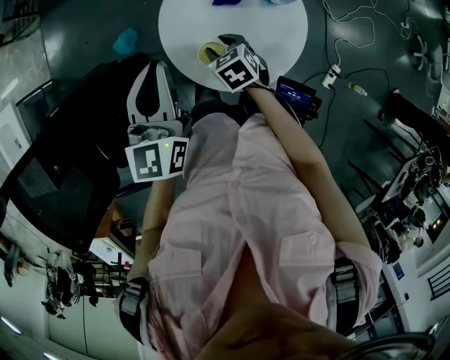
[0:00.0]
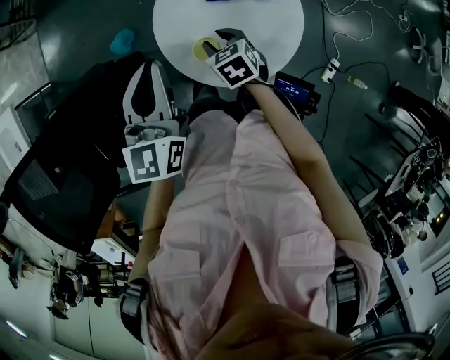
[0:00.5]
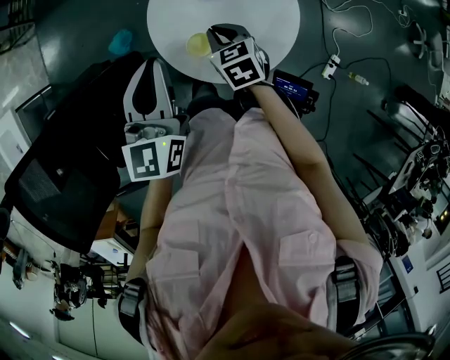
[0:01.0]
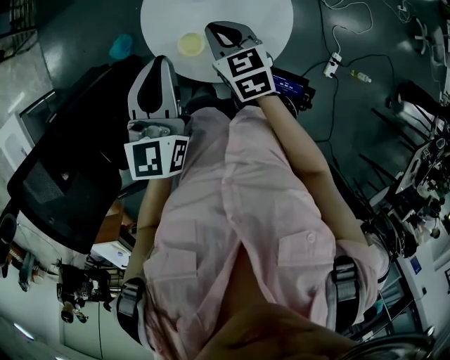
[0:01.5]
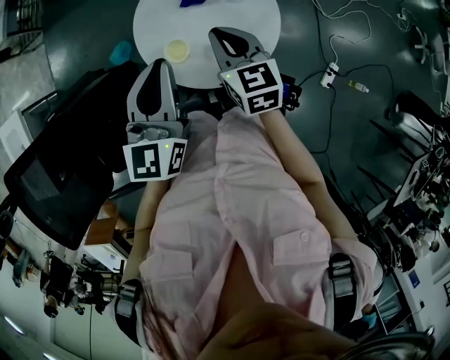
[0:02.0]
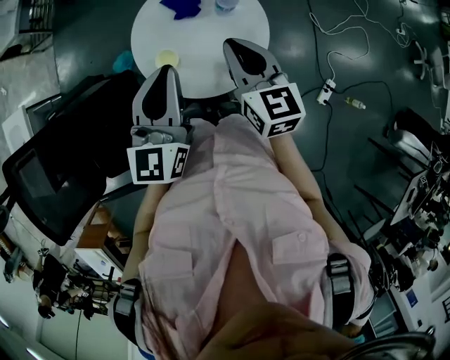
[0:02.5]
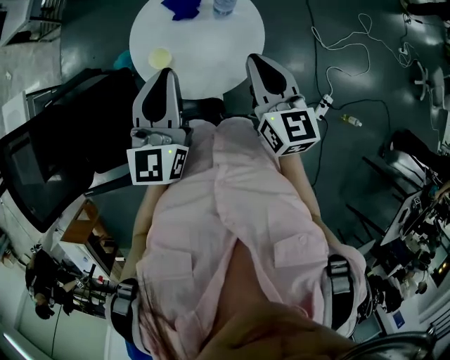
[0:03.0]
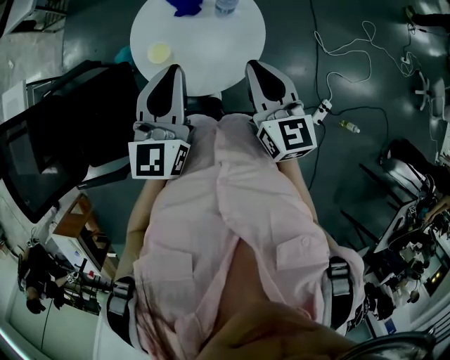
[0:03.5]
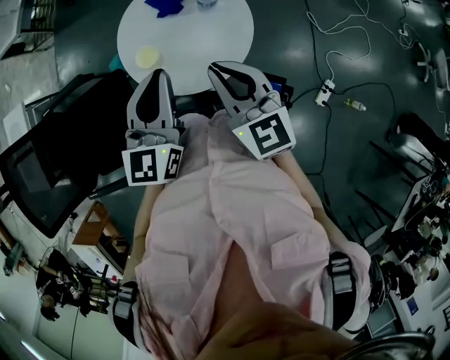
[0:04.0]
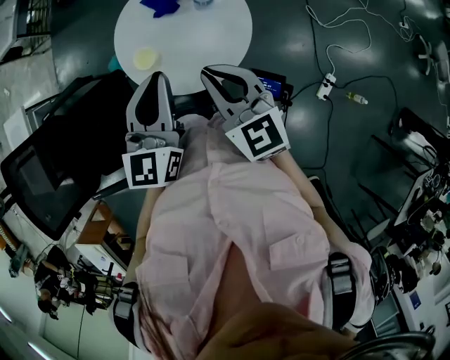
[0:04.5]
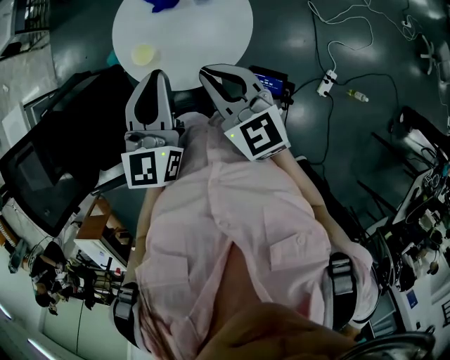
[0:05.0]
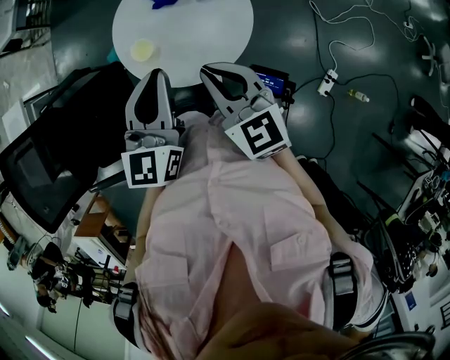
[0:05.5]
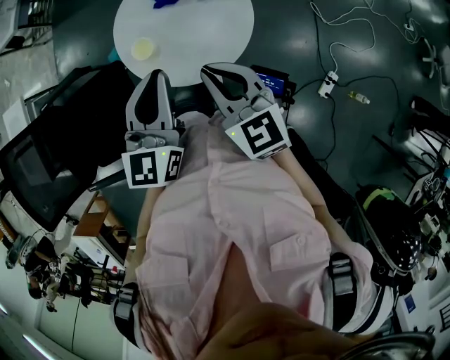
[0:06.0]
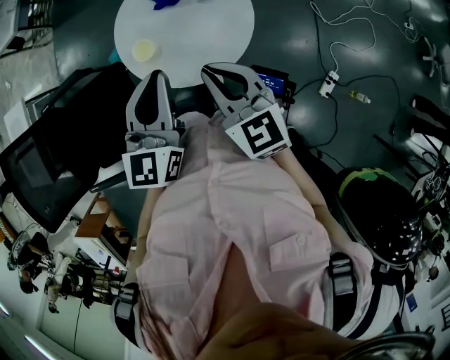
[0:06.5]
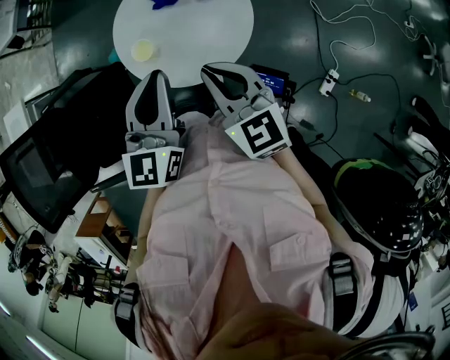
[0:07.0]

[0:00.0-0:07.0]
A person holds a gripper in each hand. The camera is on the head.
0:00.0 to 0:02.0: The right gripper travels upward and to the right by roughly 20 cm, points its fingers approximately 30 degrees further upward, and closes its fingers. Meanwhile the left gripper travels to the right and backward by about 10 cm.
0:02.0 to 0:03.5: The right gripper shifts some 20 cm to the right, backward and upward, while the left gripper moves to the right and backward, roughly 10 cm.
0:03.5 to 0:05.0: The right gripper is displaced to the left by about 5 cm.
0:05.0 to 0:07.0: There are only small adjustments of the grippers.

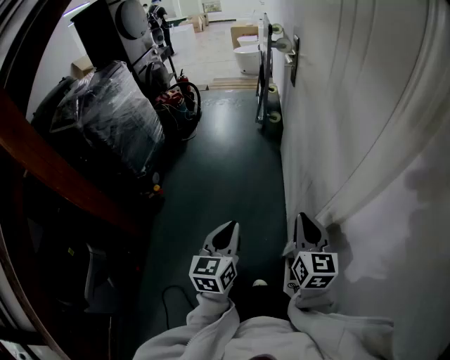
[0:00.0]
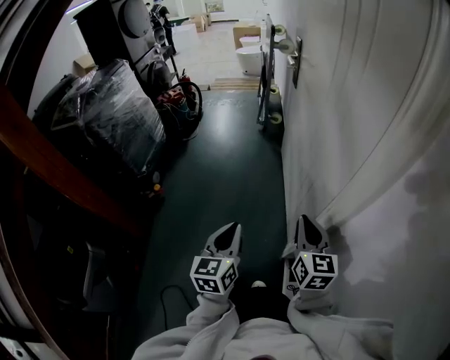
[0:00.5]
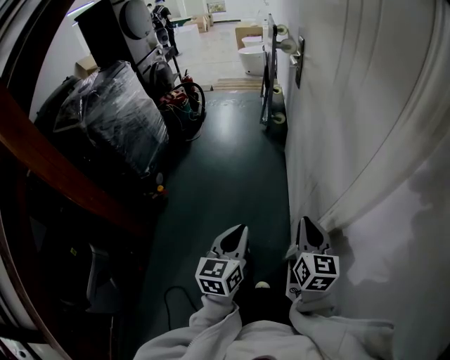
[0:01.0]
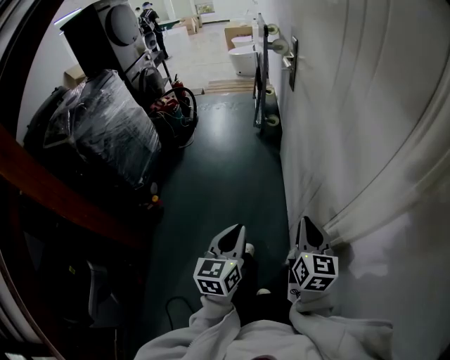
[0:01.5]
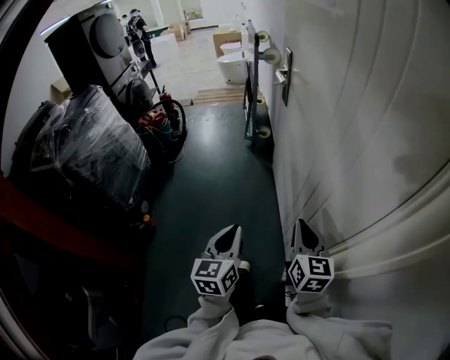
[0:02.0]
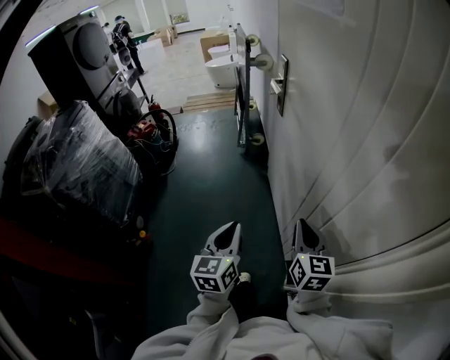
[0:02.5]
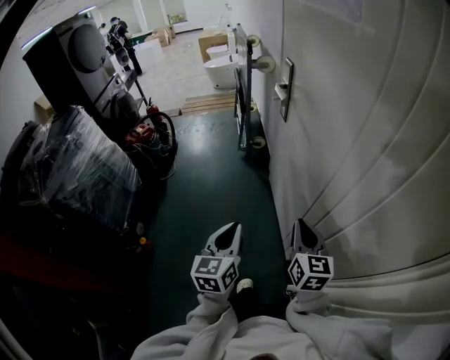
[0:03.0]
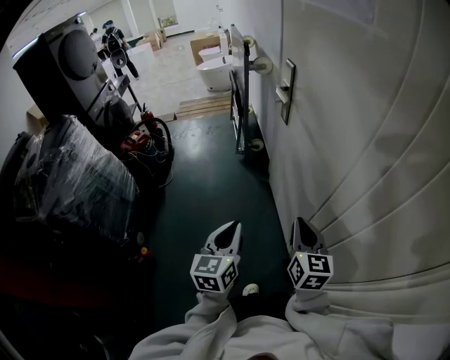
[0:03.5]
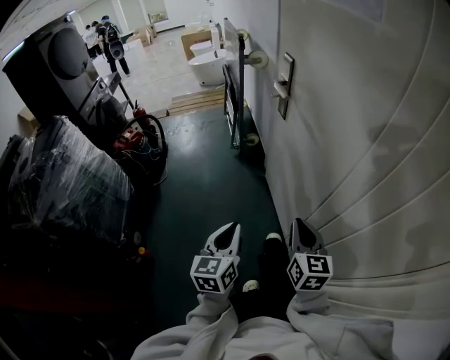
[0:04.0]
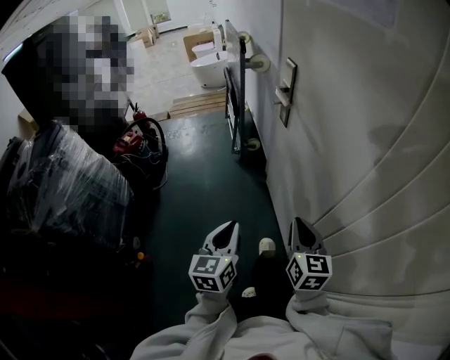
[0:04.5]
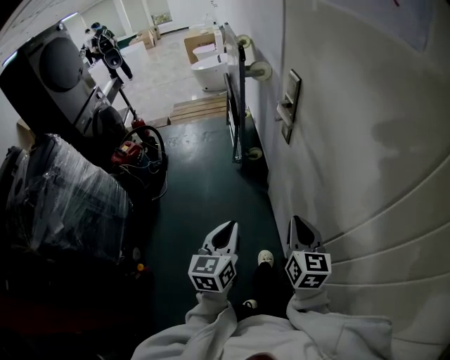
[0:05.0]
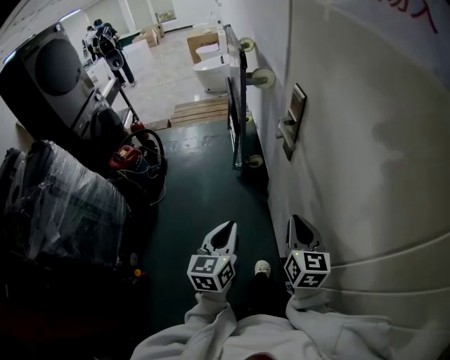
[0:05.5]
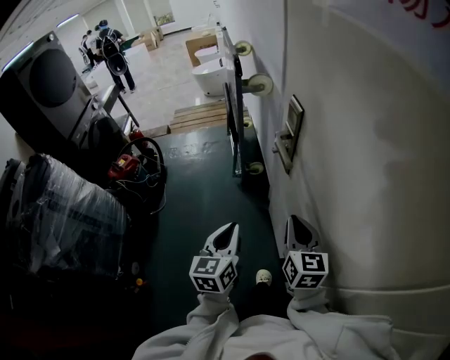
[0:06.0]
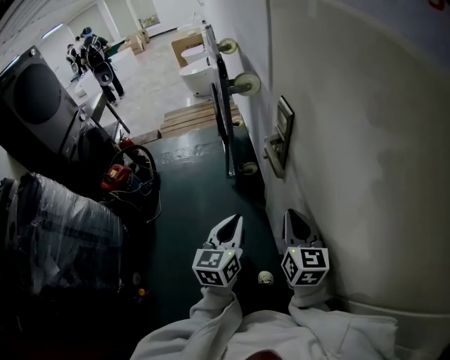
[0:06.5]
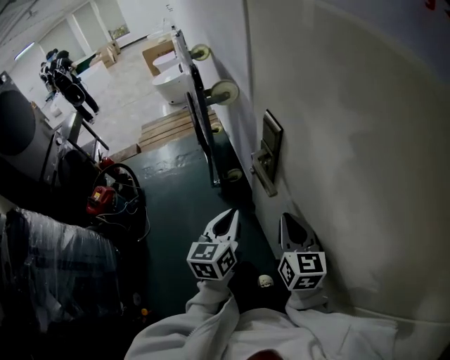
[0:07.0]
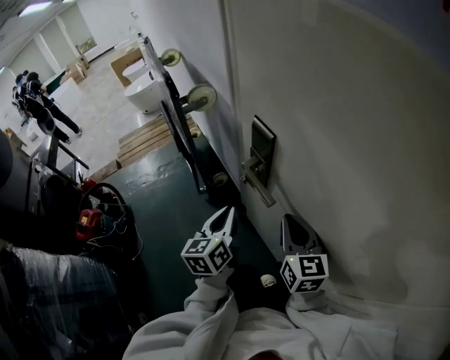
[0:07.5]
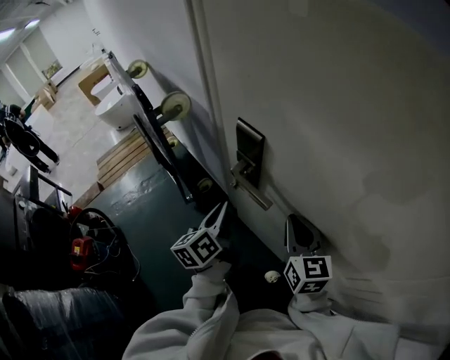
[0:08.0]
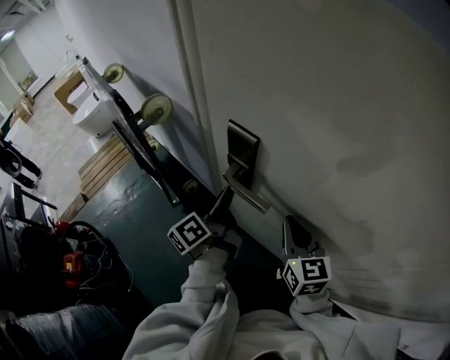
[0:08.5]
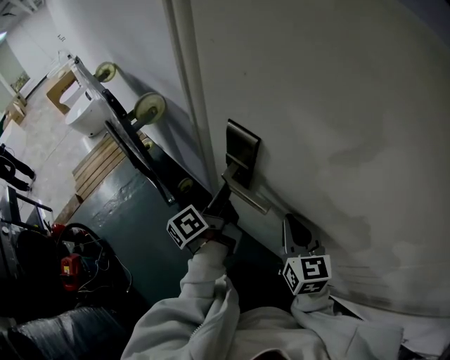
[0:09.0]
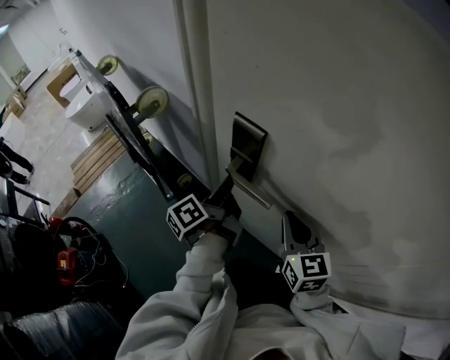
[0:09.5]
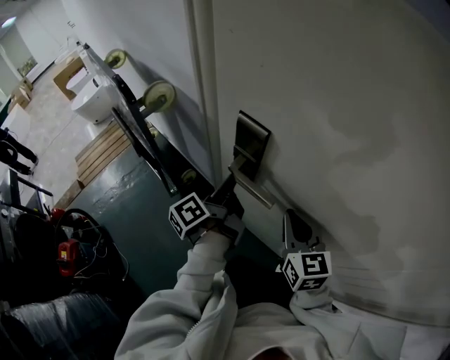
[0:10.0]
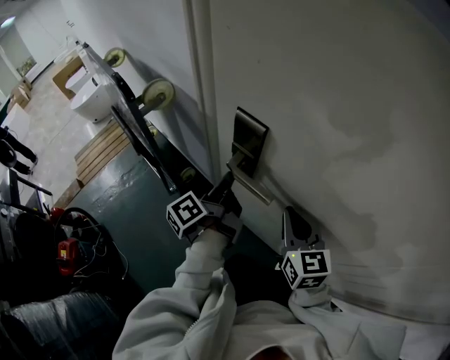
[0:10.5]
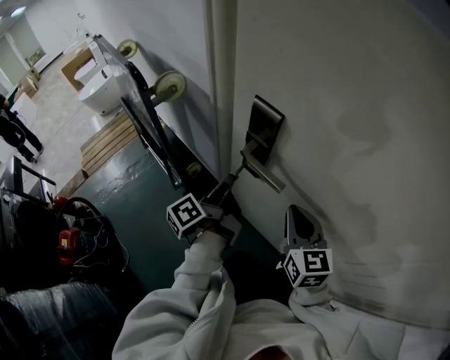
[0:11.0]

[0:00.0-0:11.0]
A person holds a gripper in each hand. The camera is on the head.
0:00.0 to 0:02.0: The two grippers go roughly 15 cm forward.
0:02.0 to 0:03.5: The grippers both shift forward and to the left by approximately 20 cm.
0:03.5 to 0:05.5: Both grippers travel together forward, some 25 cm.
0:05.5 to 0:07.5: The left gripper is displaced forward by some 25 cm, and rotates about 20 degrees; the right gripper shifts some 15 cm forward.
0:07.5 to 0:09.0: The left gripper goes some 10 cm forward, and rotates around the line of its fingers by about 40 degrees, counterclockwise from behind.
0:09.0 to 0:11.0: The left gripper ends up some 5 cm from where it was.

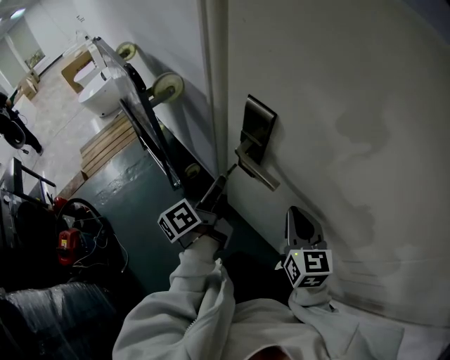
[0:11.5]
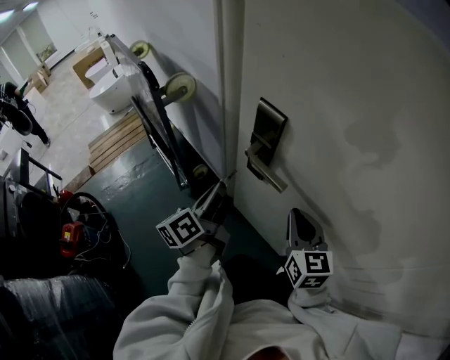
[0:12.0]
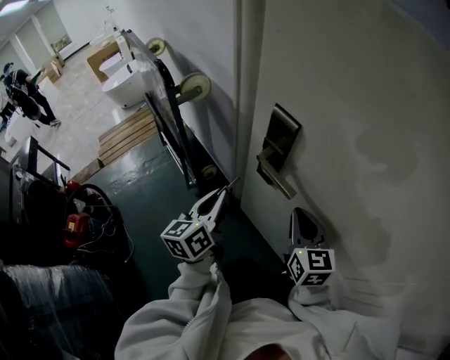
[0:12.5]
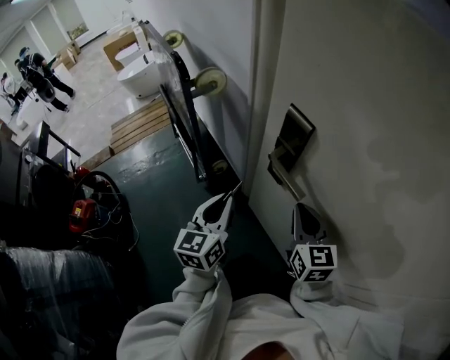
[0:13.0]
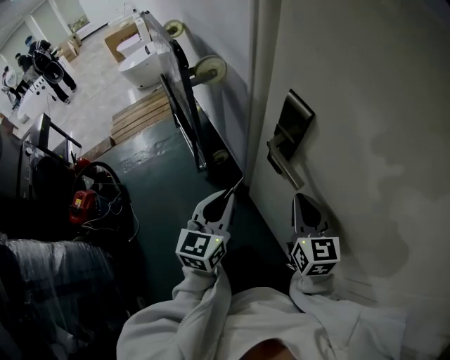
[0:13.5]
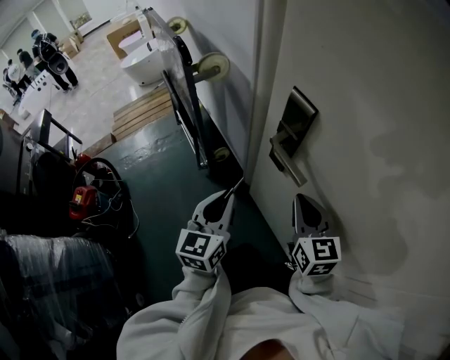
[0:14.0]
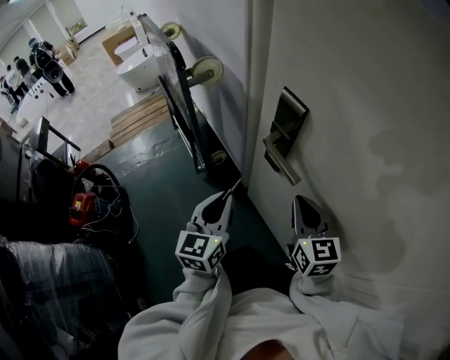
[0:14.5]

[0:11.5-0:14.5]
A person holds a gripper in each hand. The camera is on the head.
0:11.5 to 0:13.0: The right gripper shifts by about 5 cm. Meanwhile the left gripper shifts about 5 cm backward, and rolls clockwise, seen from behind, by roughly 50 degrees.
0:13.0 to 0:14.5: The grippers stay close to where they were, moving slightly.

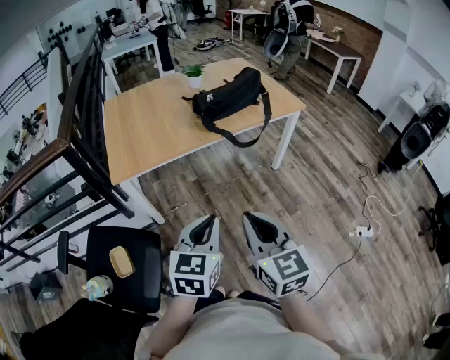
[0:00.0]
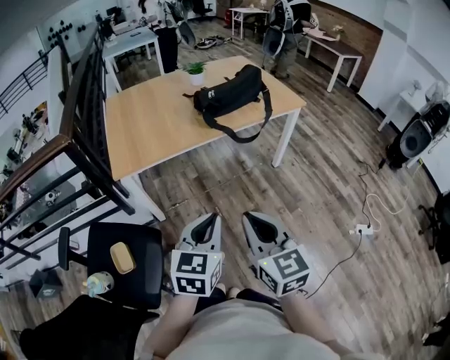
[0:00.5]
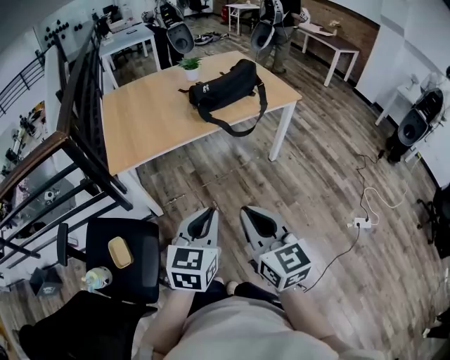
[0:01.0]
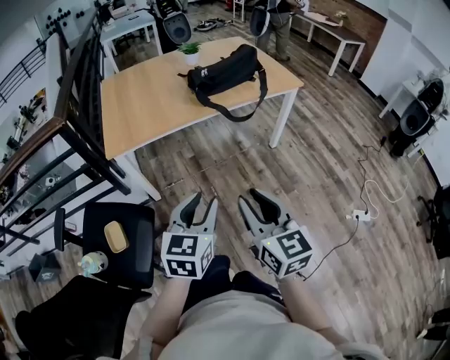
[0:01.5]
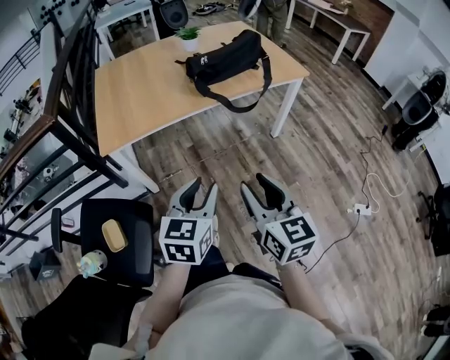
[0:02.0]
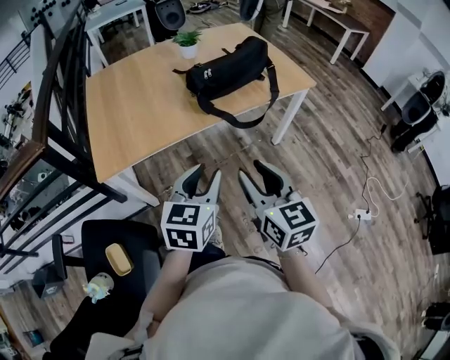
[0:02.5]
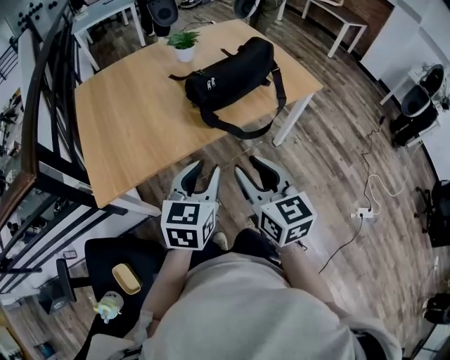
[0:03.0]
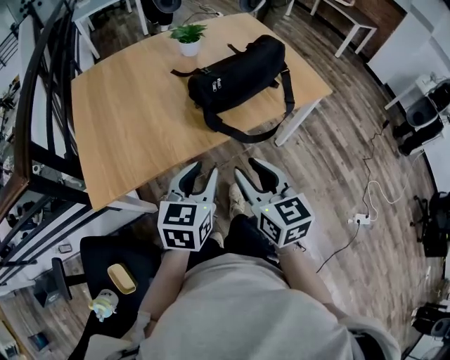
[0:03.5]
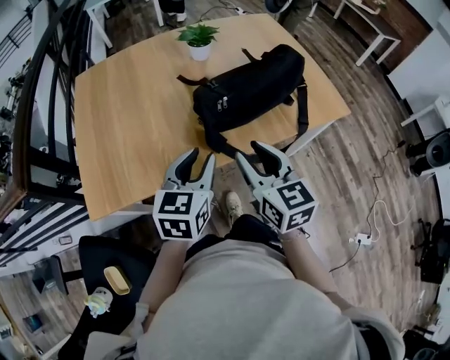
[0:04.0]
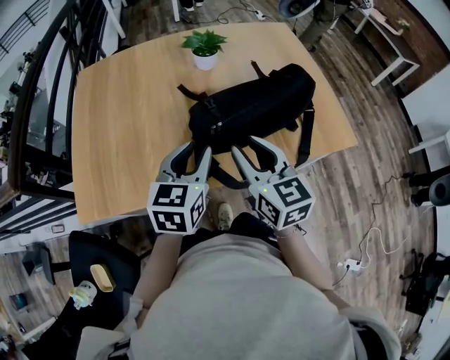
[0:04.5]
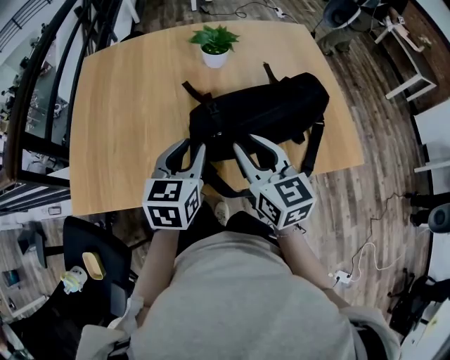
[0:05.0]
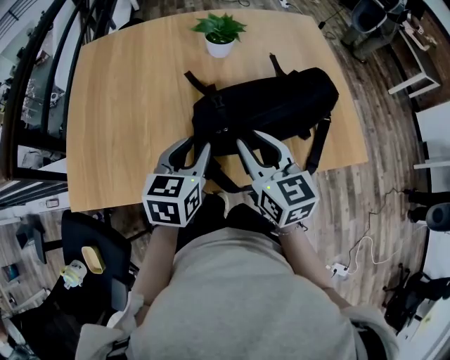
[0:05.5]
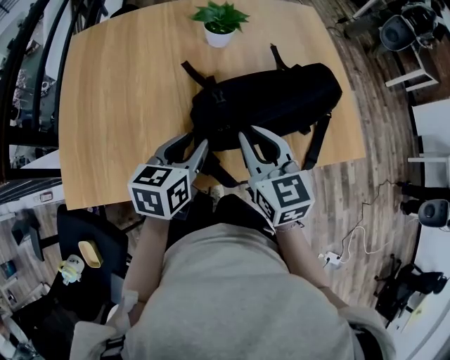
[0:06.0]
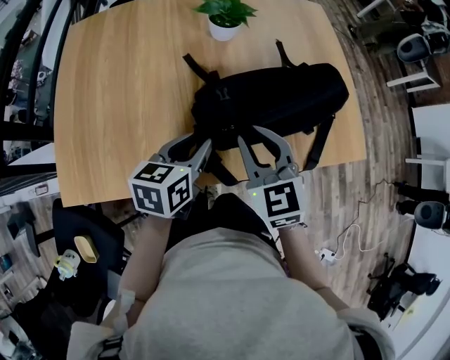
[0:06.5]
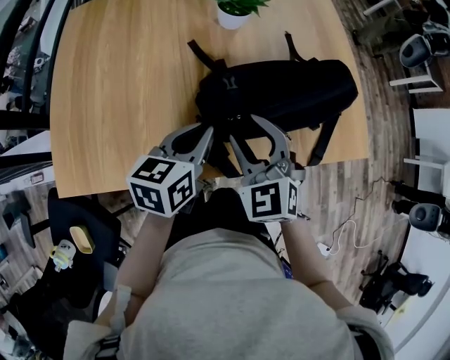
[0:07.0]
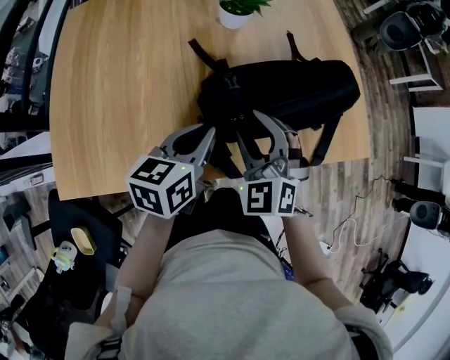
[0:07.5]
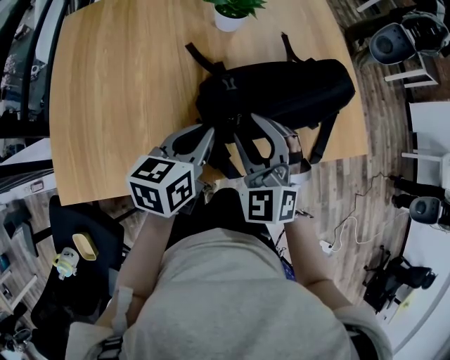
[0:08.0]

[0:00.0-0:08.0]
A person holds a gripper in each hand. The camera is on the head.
0:00.0 to 0:02.0: The right gripper ends up roughly 5 cm from where it was, and opens its fingers; the left gripper opens.
0:02.0 to 0:04.0: The pair of grippers is taken forward, roughly 40 cm.
0:04.0 to 0:06.0: The left gripper goes some 15 cm forward and downward; the right gripper goes about 15 cm forward, and closes.
0:06.0 to 0:08.0: The right gripper twists about 50 degrees counterclockwise, seen from behind, and opens up. The left gripper closes up.
